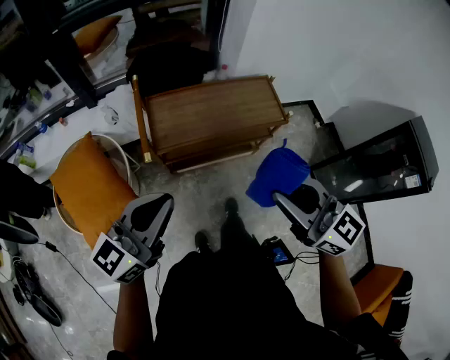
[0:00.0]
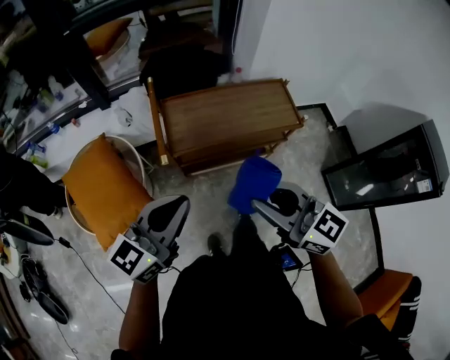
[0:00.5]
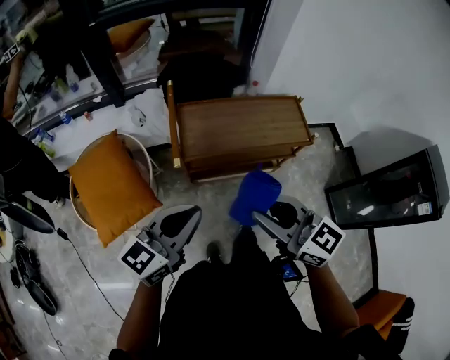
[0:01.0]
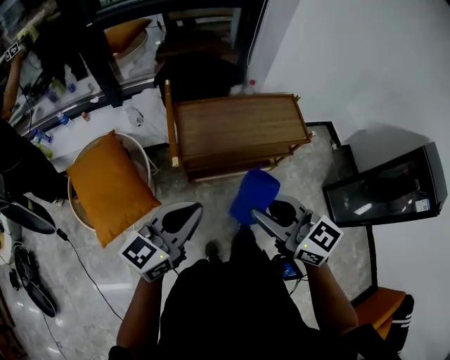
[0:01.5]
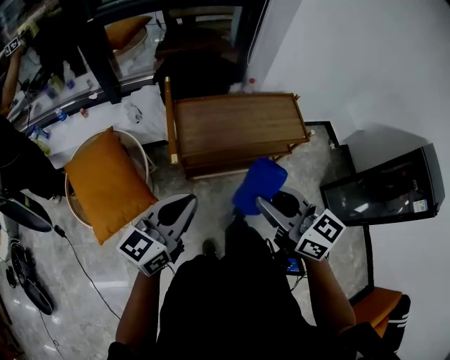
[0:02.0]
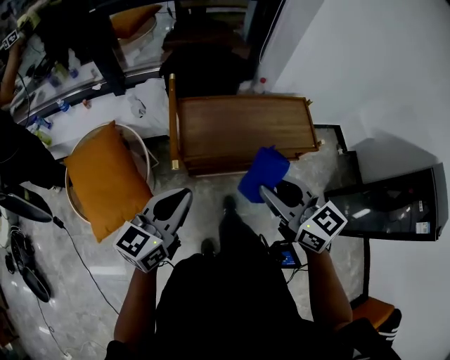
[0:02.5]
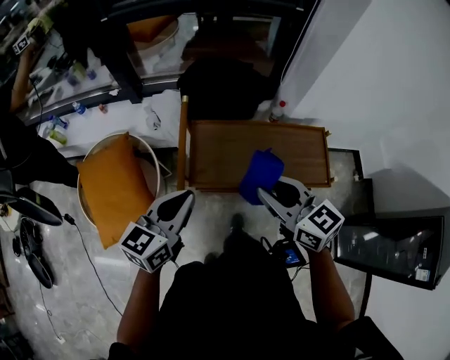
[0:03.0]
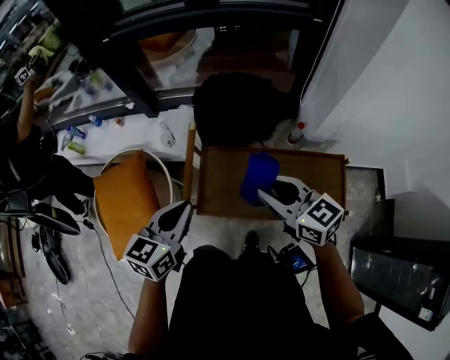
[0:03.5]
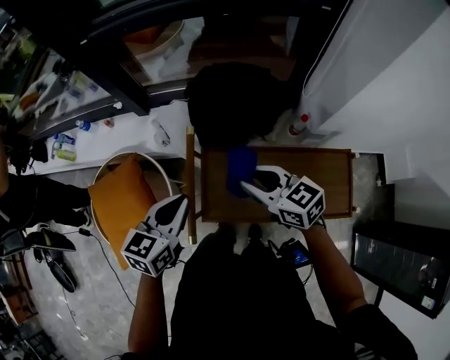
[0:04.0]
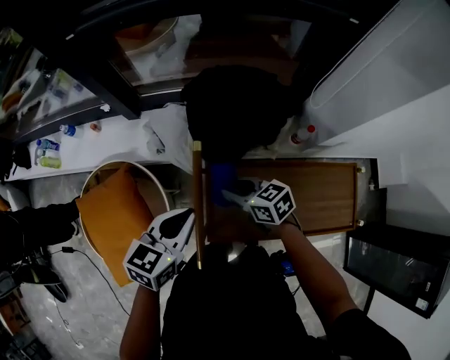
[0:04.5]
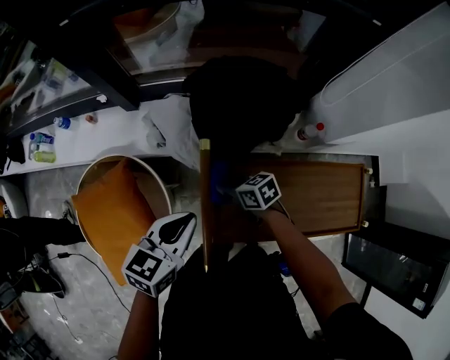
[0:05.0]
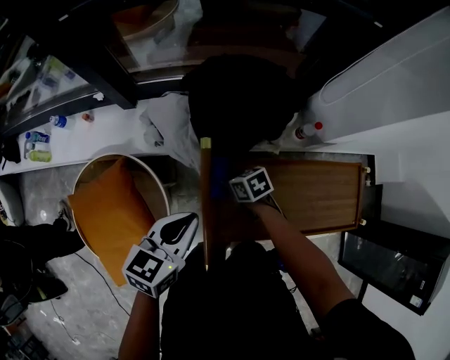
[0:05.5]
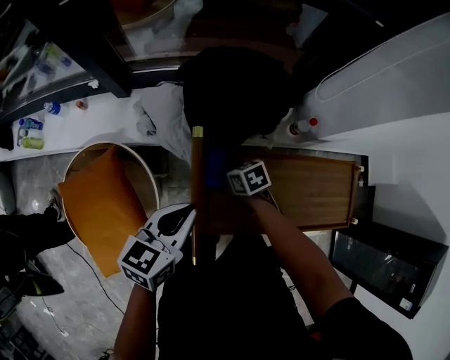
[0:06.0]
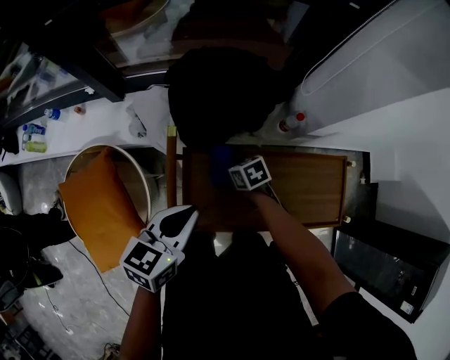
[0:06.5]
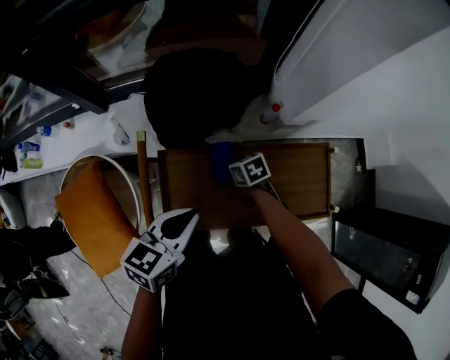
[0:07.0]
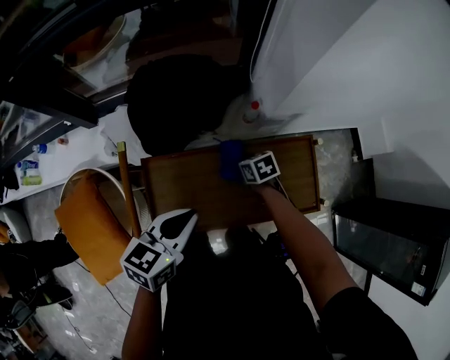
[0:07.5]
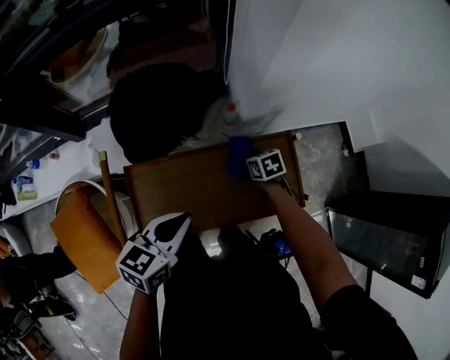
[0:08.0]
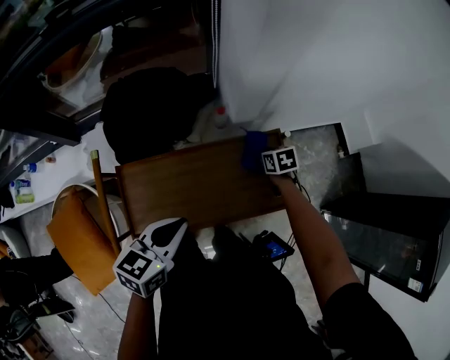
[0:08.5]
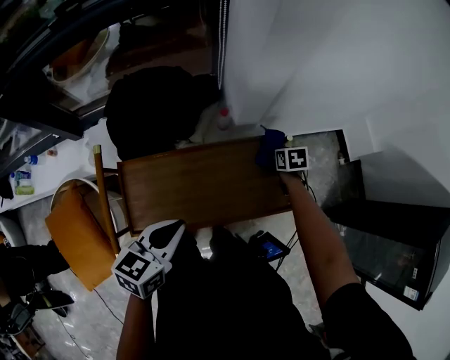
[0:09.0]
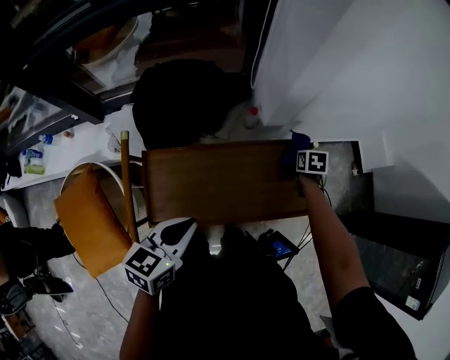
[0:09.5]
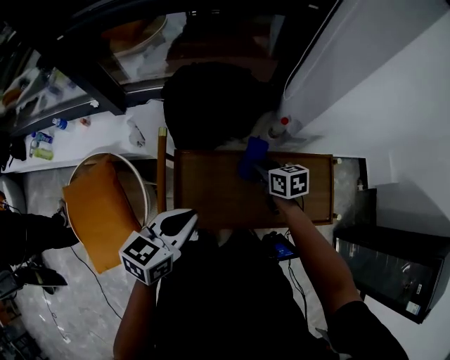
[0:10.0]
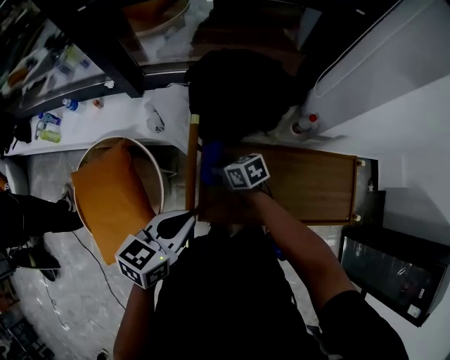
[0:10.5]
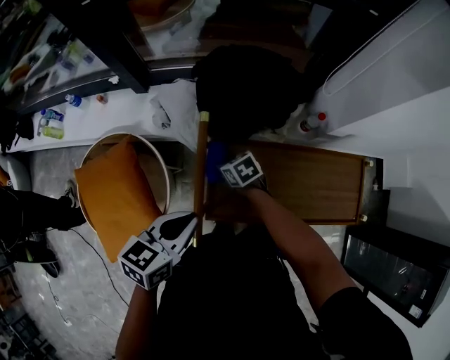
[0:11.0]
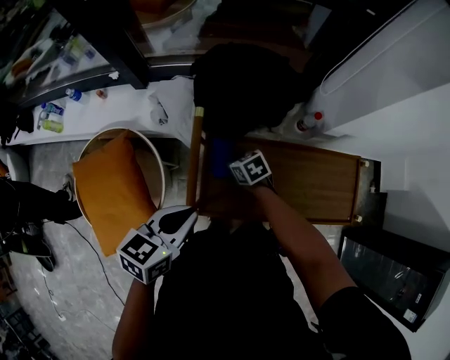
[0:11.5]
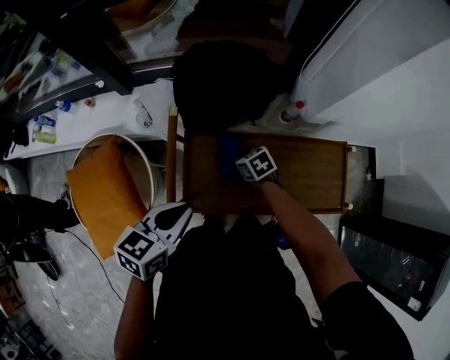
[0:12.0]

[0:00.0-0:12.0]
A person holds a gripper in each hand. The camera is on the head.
0:00.0 to 0:02.0: The left gripper travels downward by roughly 5 cm; the right gripper travels to the left by some 10 cm.
0:02.0 to 0:04.0: Both grippers move forward, about 35 cm. The right gripper rotates some 30 degrees; the left gripper changes its angle by roughly 30 degrees.
0:04.0 to 0:06.0: The left gripper moves downward, about 5 cm; the right gripper is displaced downward by about 25 cm, and tips its fingers downward by roughly 30 degrees.
0:06.0 to 0:08.0: Both grippers travel together to the right, about 30 cm.
0:08.0 to 0:10.0: The left gripper heads to the left and backward, covering approximately 15 cm; the right gripper is displaced to the left and upward by approximately 20 cm.
0:10.0 to 0:12.0: The right gripper shifts approximately 15 cm downward and to the left, and swivels approximately 30 degrees.

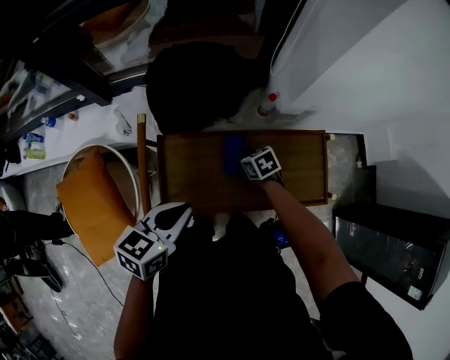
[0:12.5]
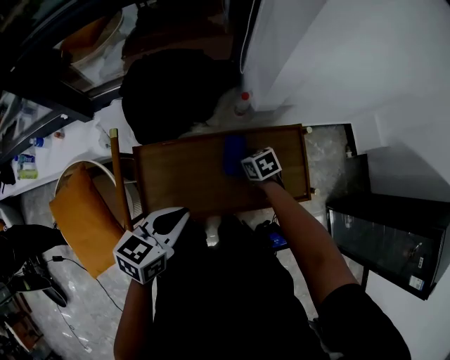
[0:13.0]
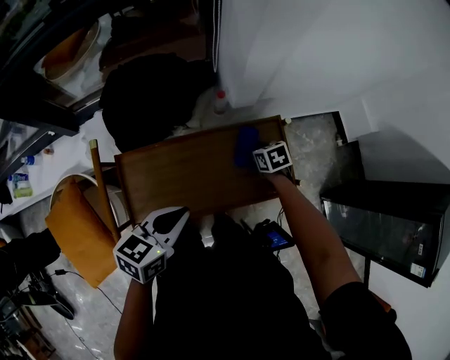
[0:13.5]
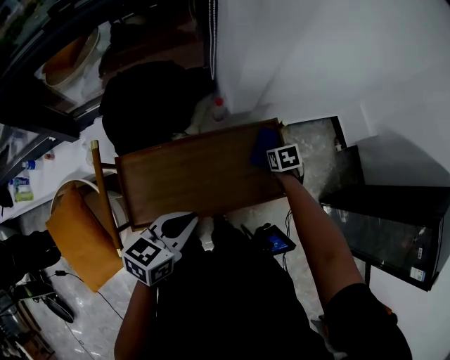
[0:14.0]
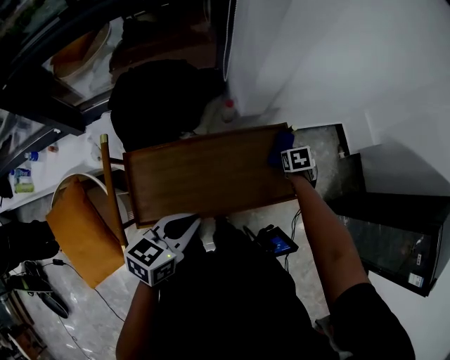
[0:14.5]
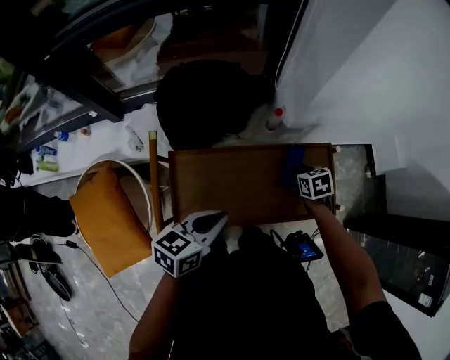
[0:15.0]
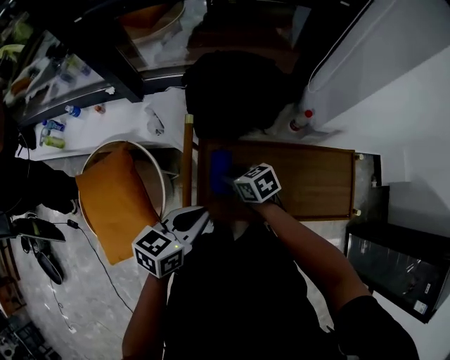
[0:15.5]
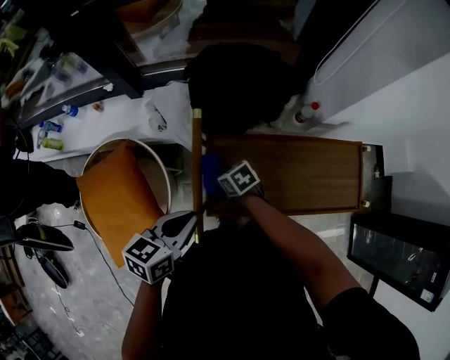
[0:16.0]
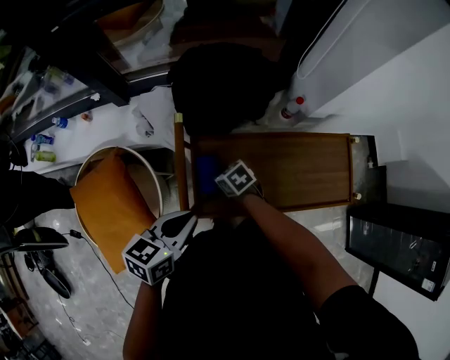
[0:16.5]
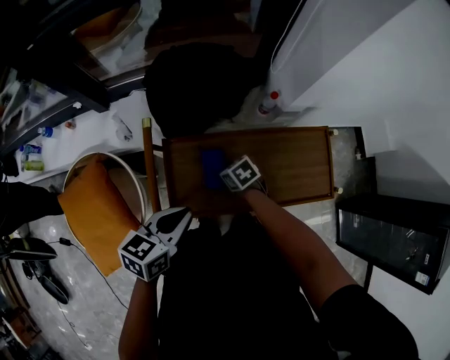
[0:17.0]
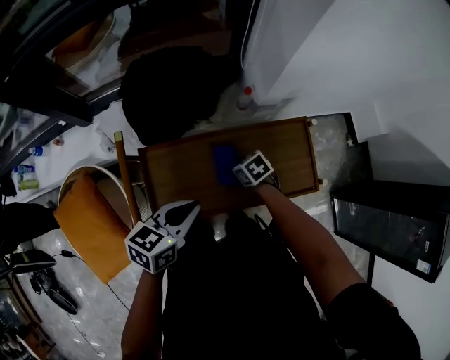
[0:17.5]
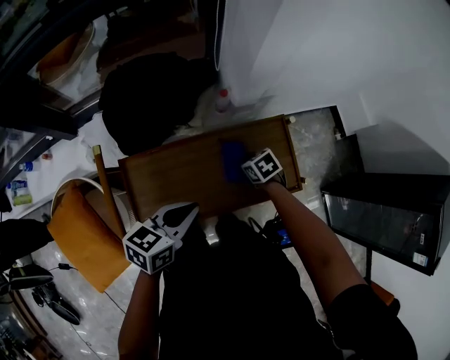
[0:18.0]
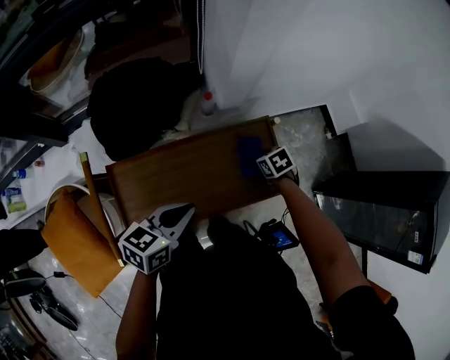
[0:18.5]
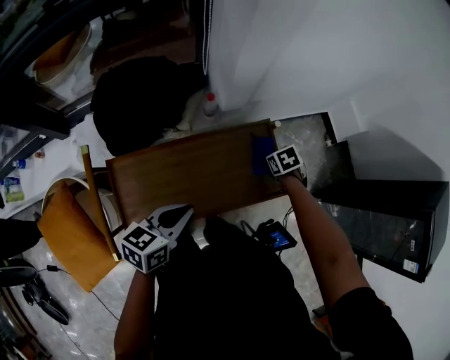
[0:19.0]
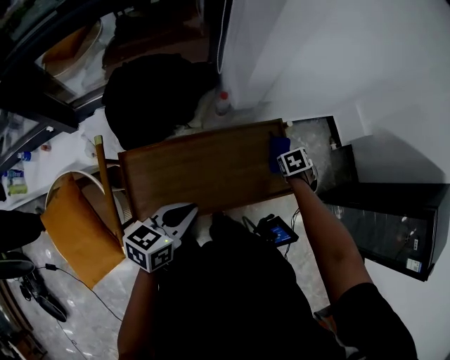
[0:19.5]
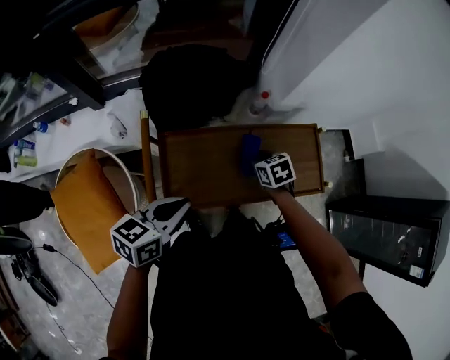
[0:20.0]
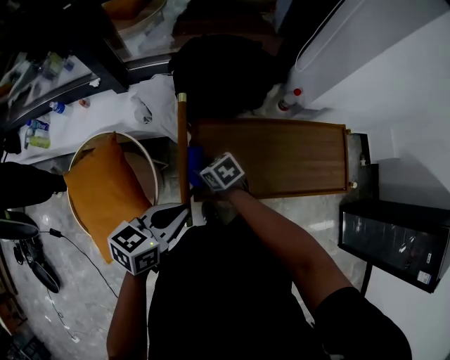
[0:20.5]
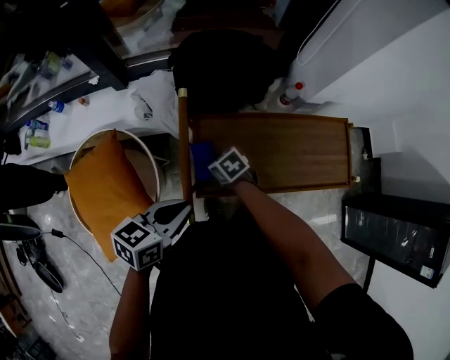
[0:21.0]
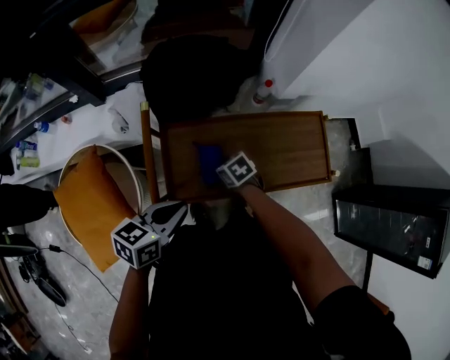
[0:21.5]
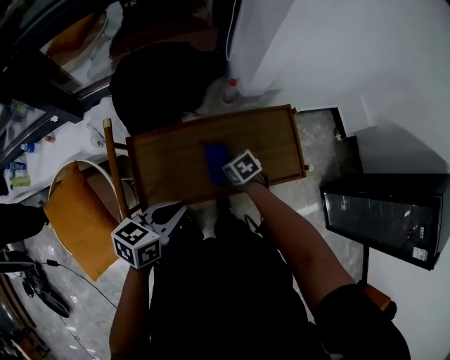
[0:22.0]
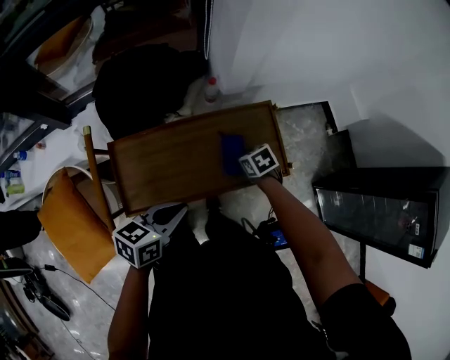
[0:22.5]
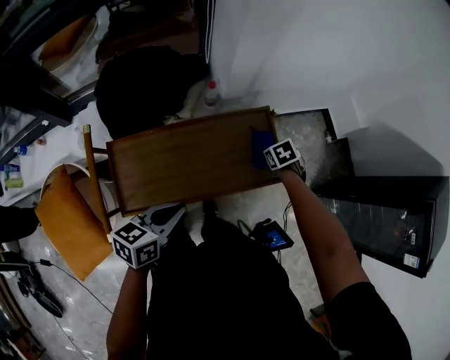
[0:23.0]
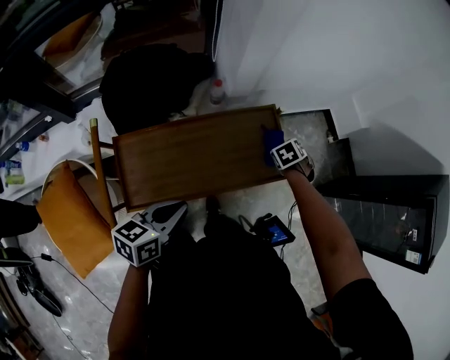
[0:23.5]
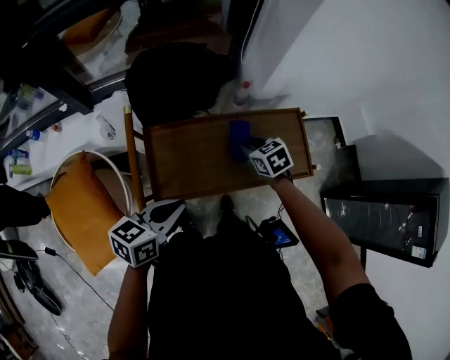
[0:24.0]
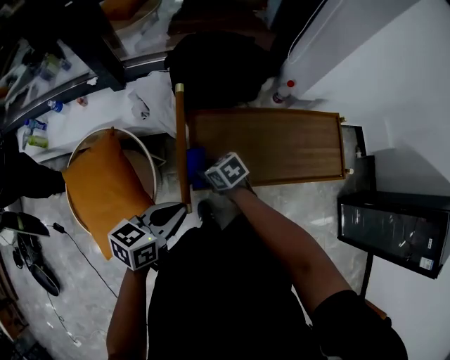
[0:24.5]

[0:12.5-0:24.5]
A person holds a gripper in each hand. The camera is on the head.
0:12.5 to 0:14.5: The right gripper shifts by some 35 cm, and rotates roughly 30 degrees. Meanwhile the left gripper shifts by roughly 15 cm.
0:14.5 to 0:16.5: The right gripper goes upward and returns, about 5 cm each way, and turns by about 50 degrees. Meanwhile the left gripper ends up roughly 25 cm from where it was.
0:16.5 to 0:18.5: The right gripper ends up some 50 cm from where it was, and changes its angle by about 30 degrees; the left gripper changes place by about 25 cm.
0:18.5 to 0:20.5: The right gripper shifts by about 50 cm, and changes its angle by approximately 30 degrees. Meanwhile the left gripper shifts by some 30 cm.
0:20.5 to 0:22.5: The right gripper shifts by approximately 40 cm, and rotates approximately 20 degrees. The left gripper moves approximately 25 cm.
0:22.5 to 0:24.5: The left gripper ends up roughly 25 cm from where it was. The right gripper travels upward and back again, approximately 10 cm each way, and changes its angle by roughly 30 degrees.

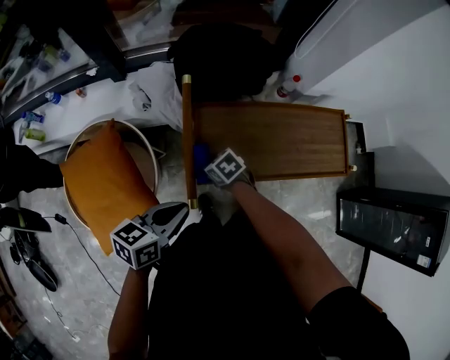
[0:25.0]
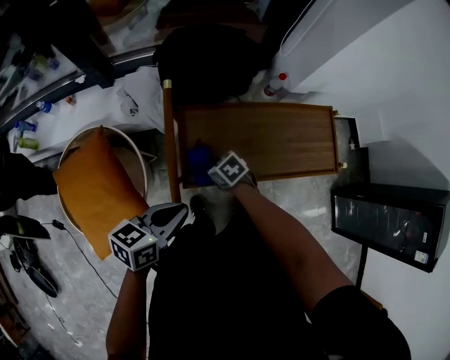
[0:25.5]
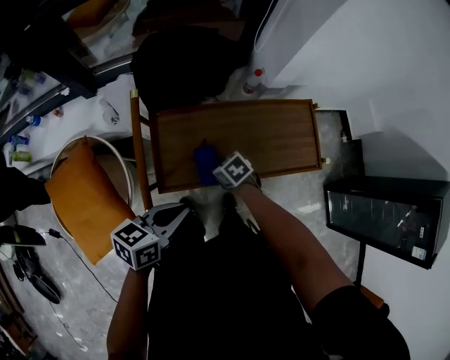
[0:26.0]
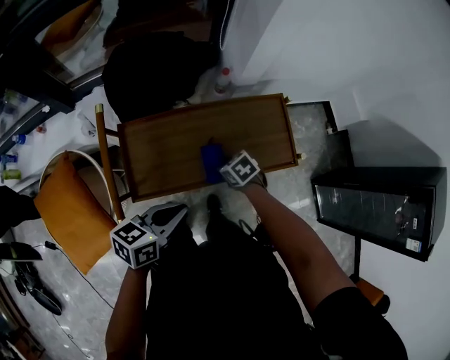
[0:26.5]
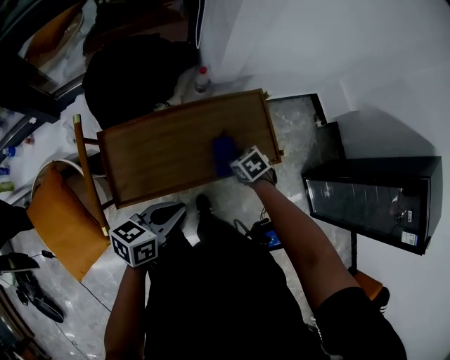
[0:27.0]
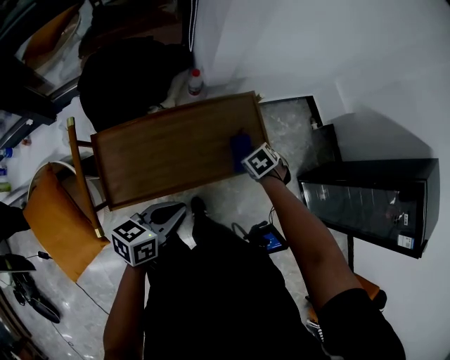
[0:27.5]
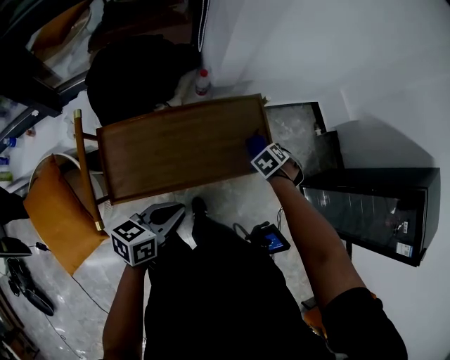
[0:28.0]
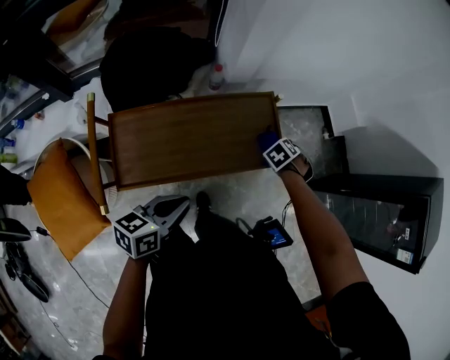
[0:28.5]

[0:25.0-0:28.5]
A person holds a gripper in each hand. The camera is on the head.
0:25.0 to 0:27.0: The right gripper ends up approximately 40 cm from where it was. The left gripper moves about 30 cm.
0:27.0 to 0:28.5: The right gripper shifts by approximately 15 cm, and changes its angle by about 30 degrees.
